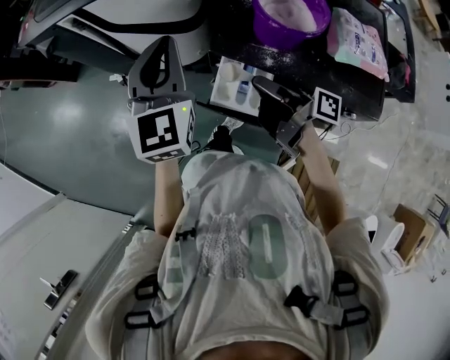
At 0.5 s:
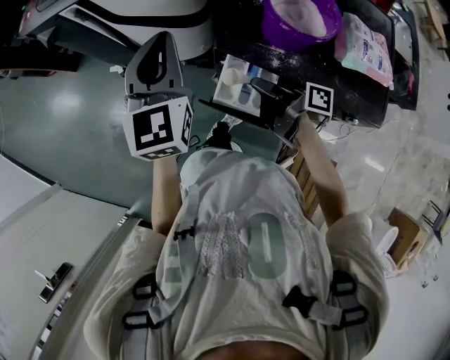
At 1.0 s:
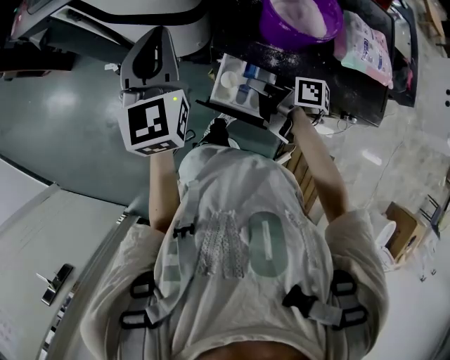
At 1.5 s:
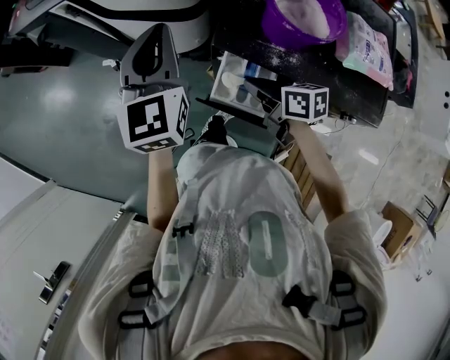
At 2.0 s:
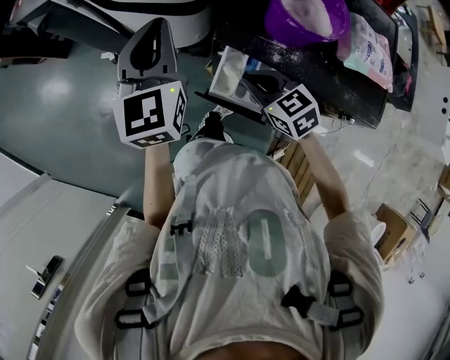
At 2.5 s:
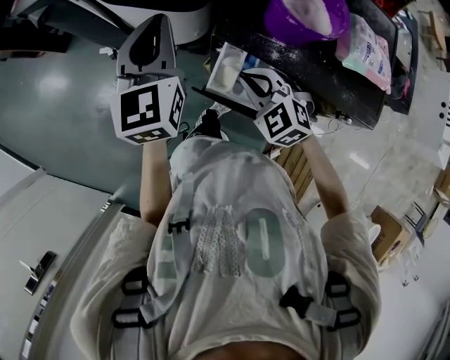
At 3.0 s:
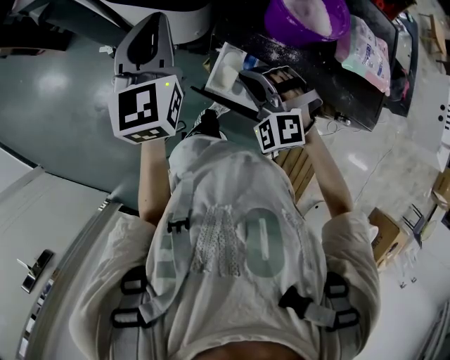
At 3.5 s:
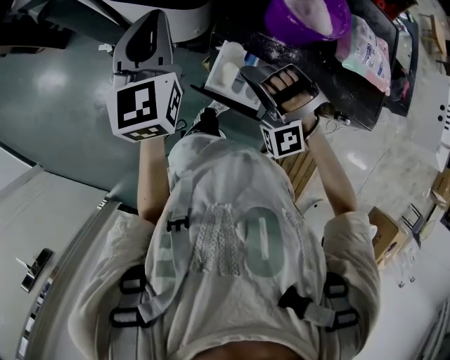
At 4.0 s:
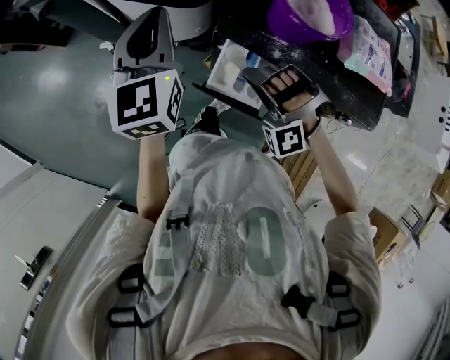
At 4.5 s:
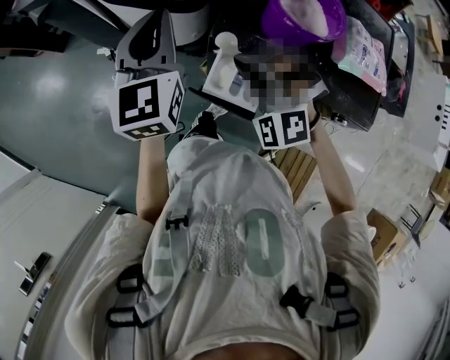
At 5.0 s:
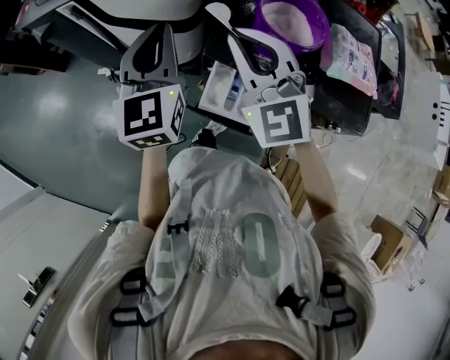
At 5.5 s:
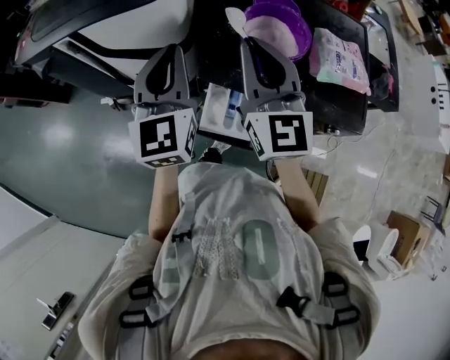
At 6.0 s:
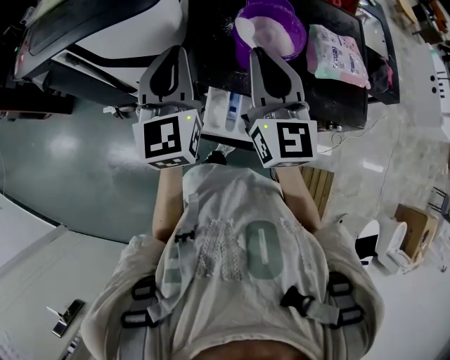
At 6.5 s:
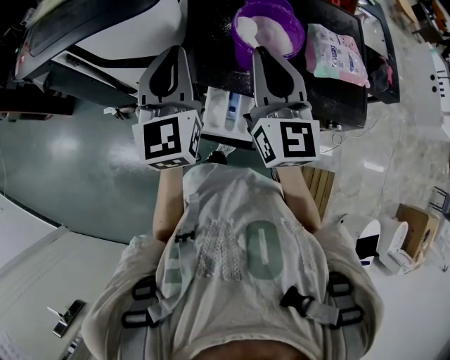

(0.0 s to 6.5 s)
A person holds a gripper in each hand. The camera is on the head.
0.0 s - 2.0 s: The right gripper travels downward by about 5 cm, and rotates around the line of its fingers by roughly 80 degrees, counterclockwise from behind.
2.0 s - 4.5 s: The right gripper heads upward, covering approximately 10 cm, and rotates around the line of its fingers by approximately 70 degrees, counterclockwise from behind.
4.5 s - 6.5 s: The right gripper travels upward and to the right by some 20 cm, and twists approximately 70 degrees clockwise, seen from behind, while the left gripper is displaced to the right by roughly 5 cm.

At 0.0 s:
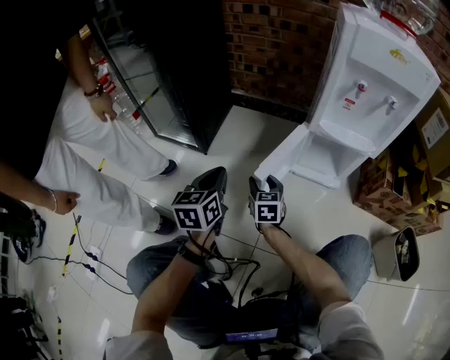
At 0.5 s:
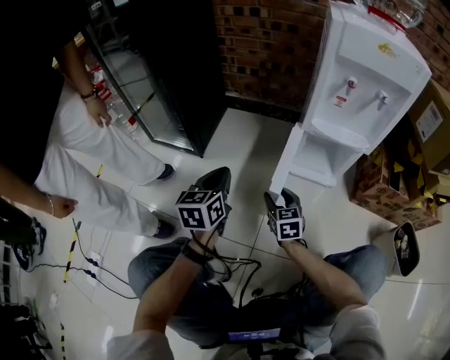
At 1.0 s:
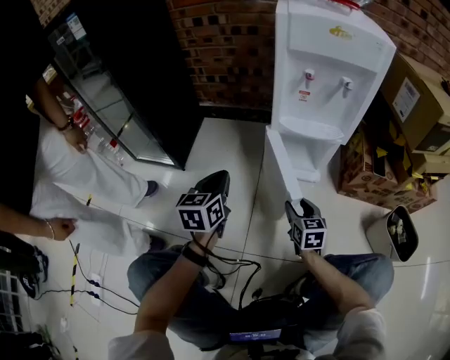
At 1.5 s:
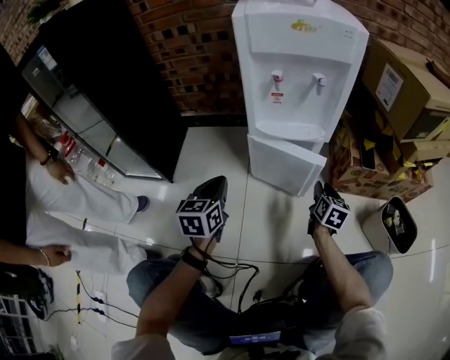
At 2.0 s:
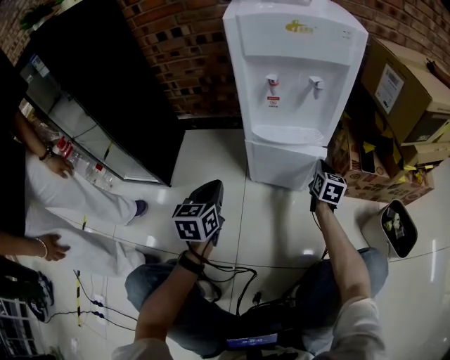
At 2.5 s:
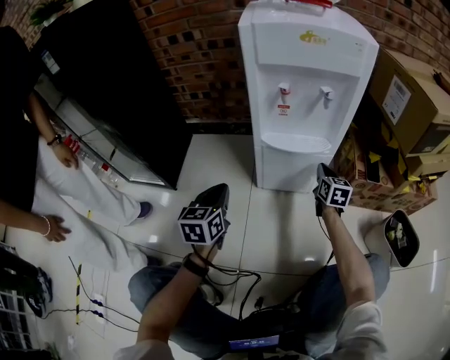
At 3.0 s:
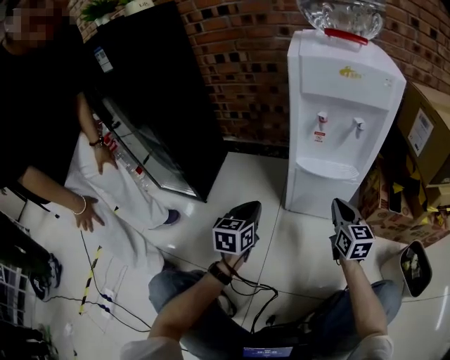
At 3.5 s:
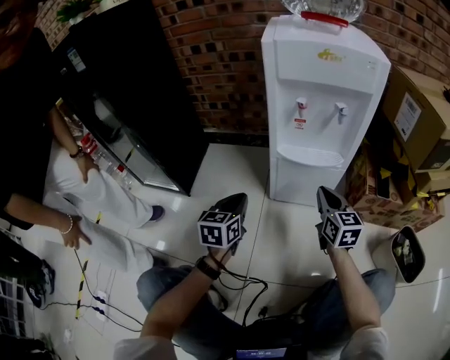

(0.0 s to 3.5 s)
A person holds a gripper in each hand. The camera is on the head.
0.0 s - 2.0 s: The right gripper goes about 50 cm to the right, turns by some 30 degrees, and closes its fingers, while the left gripper shifts roughly 25 cm to the right and forward.
2.0 s - 3.5 s: The right gripper heads upward, to the left and backward, covering approximately 20 cm, and swivels approximately 30 degrees.

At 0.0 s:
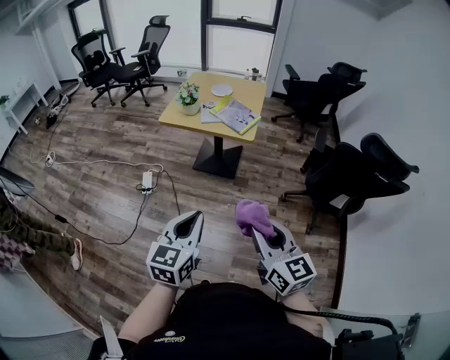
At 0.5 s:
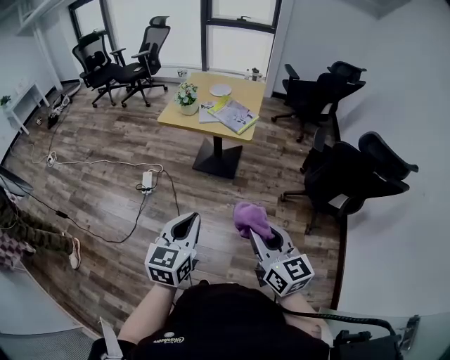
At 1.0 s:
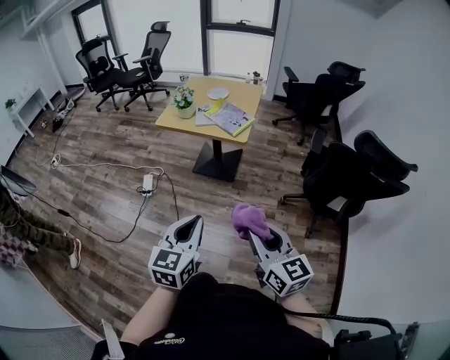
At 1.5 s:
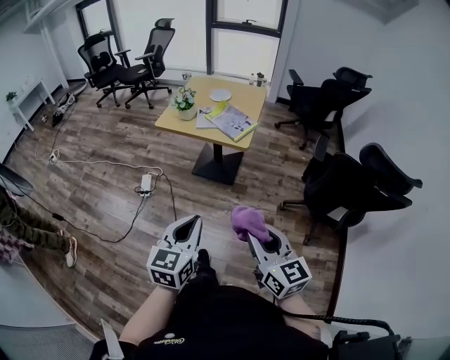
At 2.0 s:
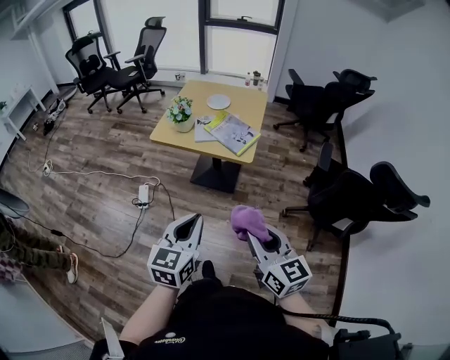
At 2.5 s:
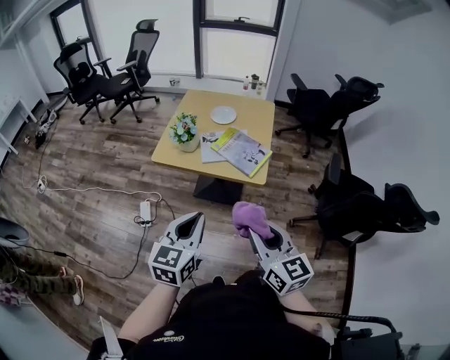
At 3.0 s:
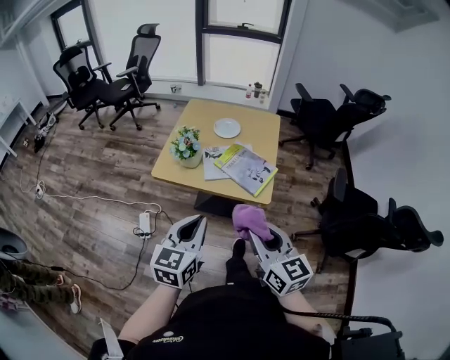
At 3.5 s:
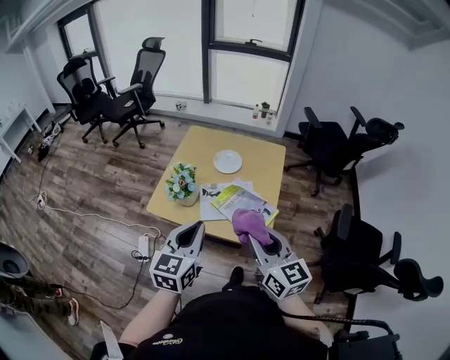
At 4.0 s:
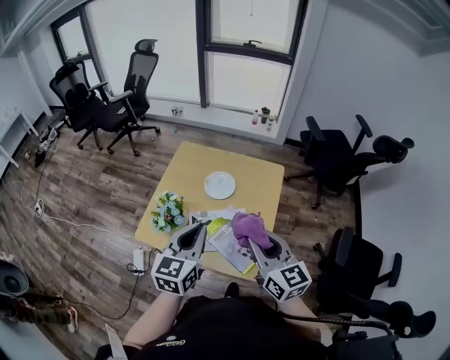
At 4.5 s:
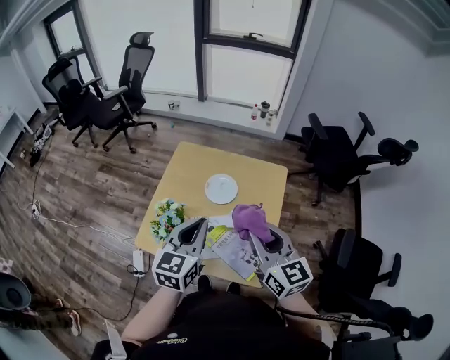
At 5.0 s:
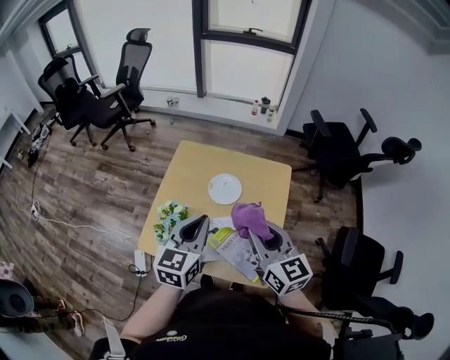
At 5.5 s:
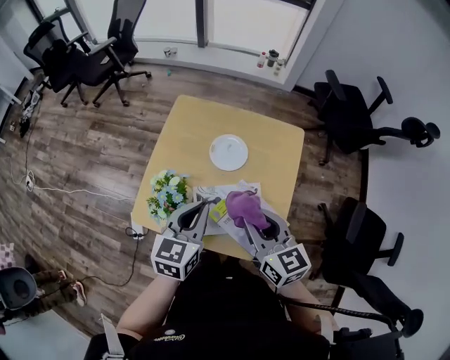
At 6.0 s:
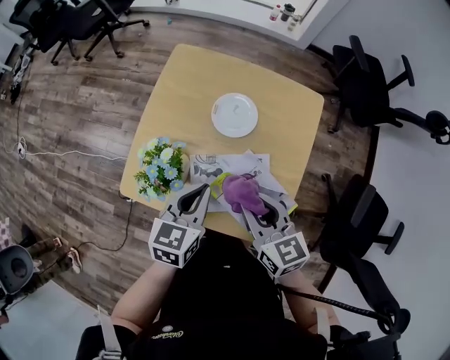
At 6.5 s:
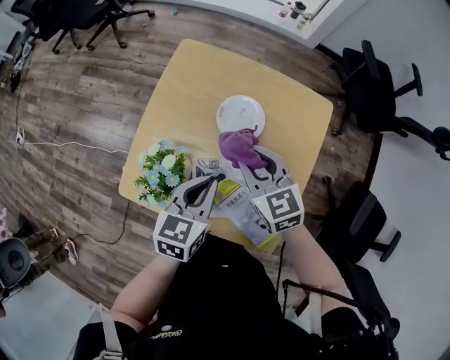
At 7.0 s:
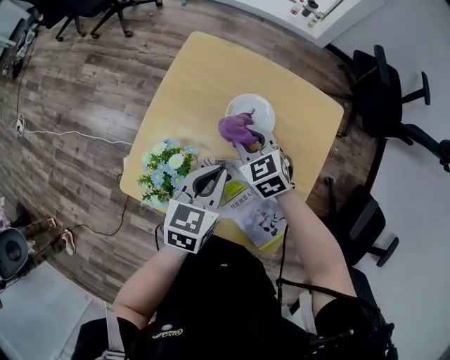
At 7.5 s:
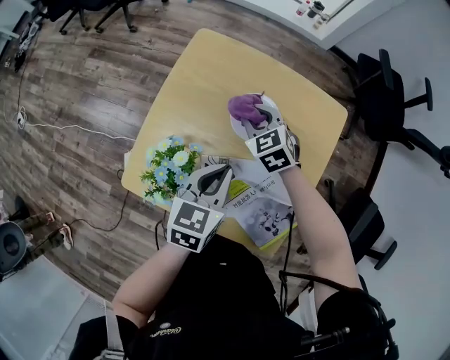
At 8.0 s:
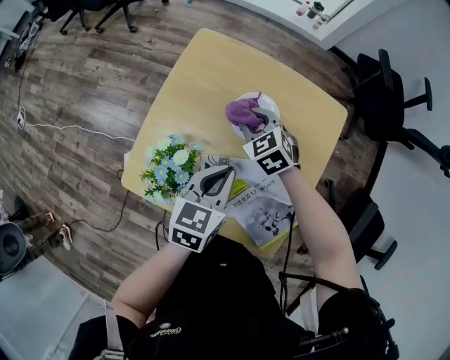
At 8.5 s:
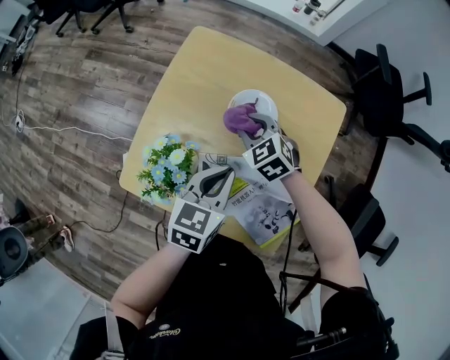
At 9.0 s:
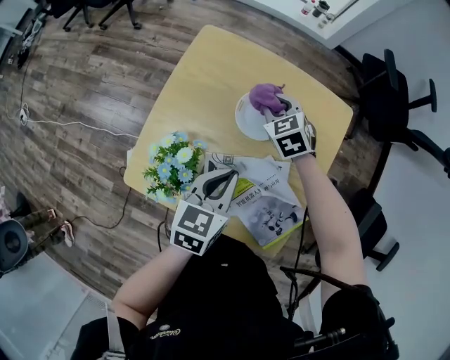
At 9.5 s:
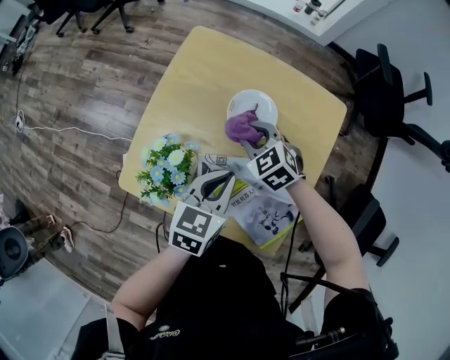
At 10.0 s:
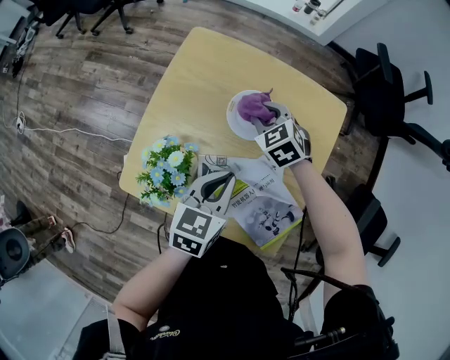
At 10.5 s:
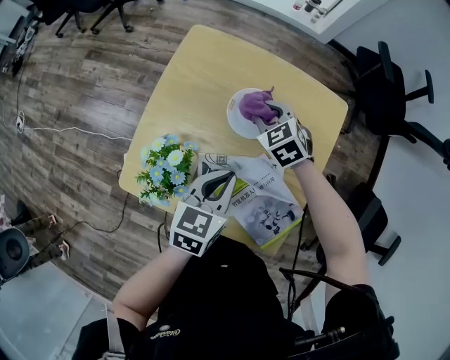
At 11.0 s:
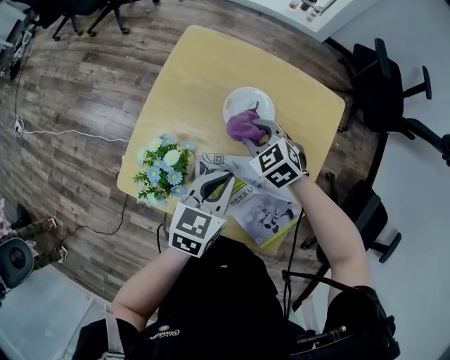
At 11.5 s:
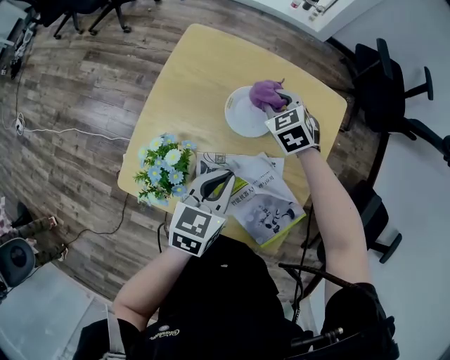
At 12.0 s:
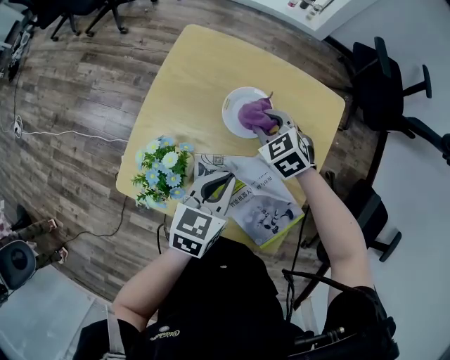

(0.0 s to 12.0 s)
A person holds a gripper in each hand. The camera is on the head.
0.0 s - 2.0 s: Both grippers travel together forward, about 15 cm.
2.0 s - 4.0 s: The two grippers travel together, forward, roughly 50 cm.
4.0 s - 6.0 s: The left gripper is displaced downward and forward by approximately 20 cm, and changes its angle by approximately 20 degrees, while the right gripper travels downward, forward and to the left by roughly 20 cm, and changes its angle by roughly 20 degrees.
6.0 s - 8.0 s: The right gripper goes some 25 cm forward and downward, and rotates approximately 40 degrees. The left gripper heads forward, covering roughly 5 cm.
8.0 s - 10.0 s: The right gripper swings forward and backward, some 10 cm each way, with 2 reversals.
10.0 s - 12.0 s: The right gripper swings forward and backward, roughly 10 cm each way, with 2 reversals.

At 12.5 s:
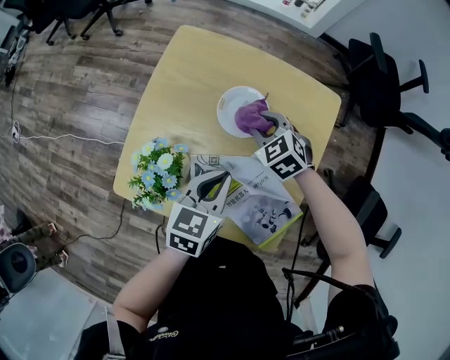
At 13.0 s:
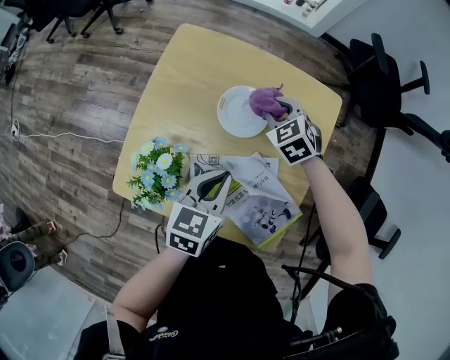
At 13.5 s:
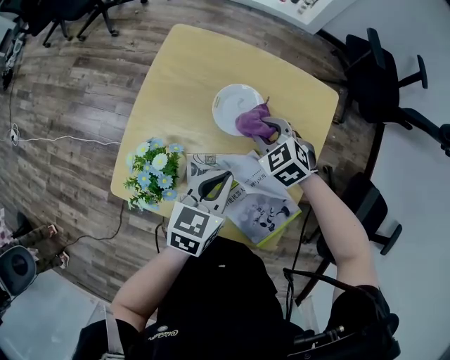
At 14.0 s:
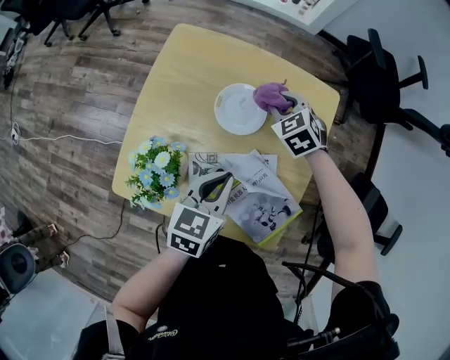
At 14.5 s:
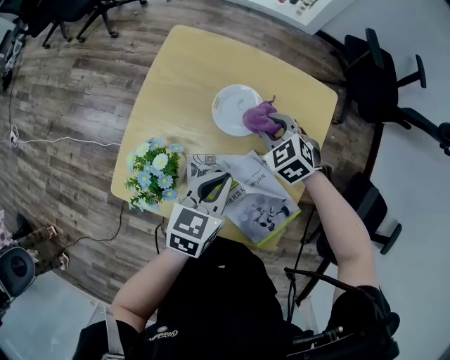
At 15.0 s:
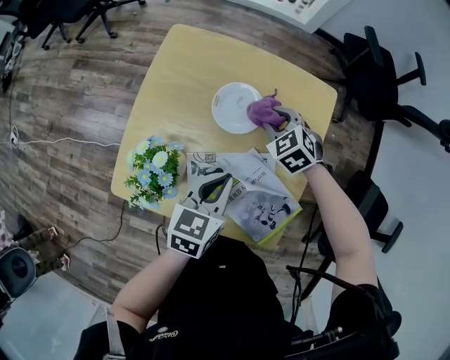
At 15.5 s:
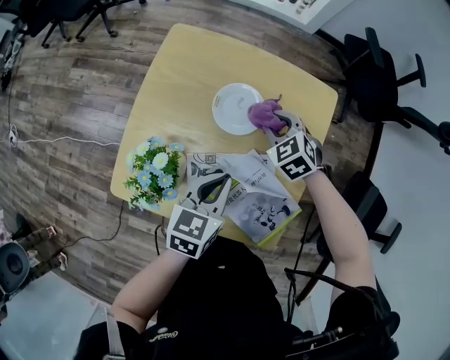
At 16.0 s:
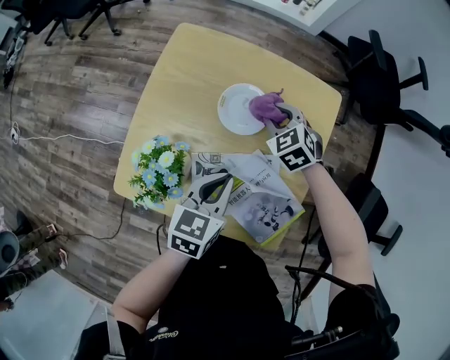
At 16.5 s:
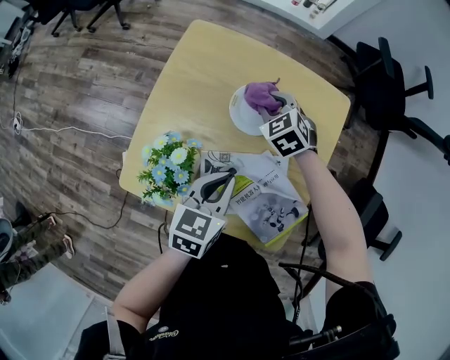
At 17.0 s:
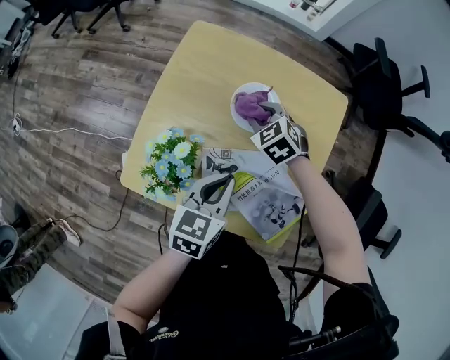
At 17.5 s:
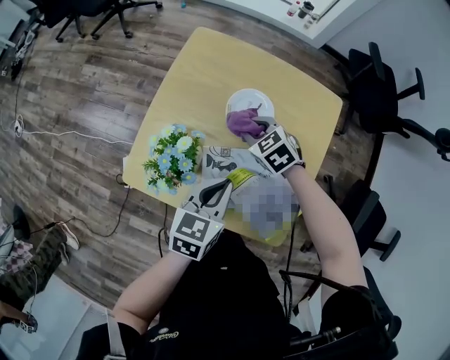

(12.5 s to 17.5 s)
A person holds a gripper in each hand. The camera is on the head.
12.5 s - 15.0 s: The right gripper goes forward and backward, about 10 cm each way, reversing 3 times.
15.0 s - 17.5 s: The right gripper travels to the left and backward by approximately 10 cm; the left gripper moves some 5 cm.
